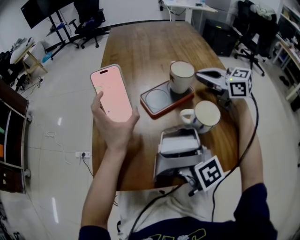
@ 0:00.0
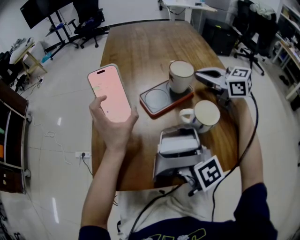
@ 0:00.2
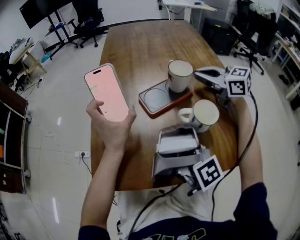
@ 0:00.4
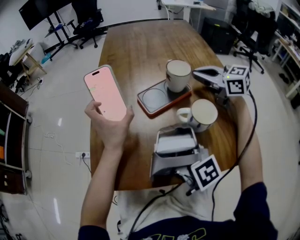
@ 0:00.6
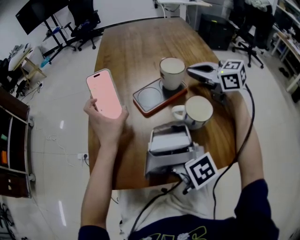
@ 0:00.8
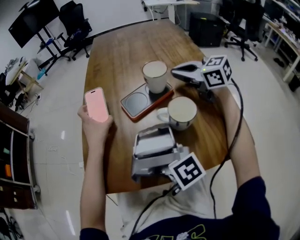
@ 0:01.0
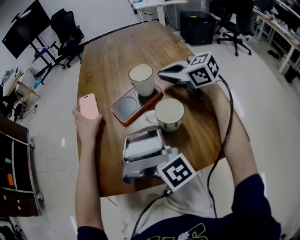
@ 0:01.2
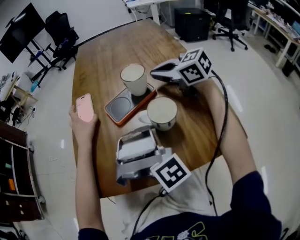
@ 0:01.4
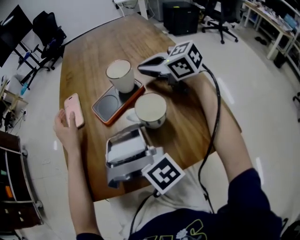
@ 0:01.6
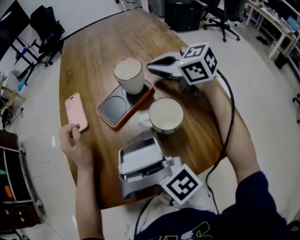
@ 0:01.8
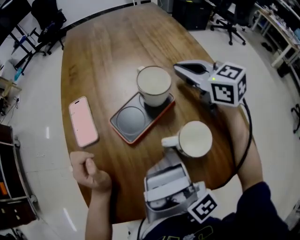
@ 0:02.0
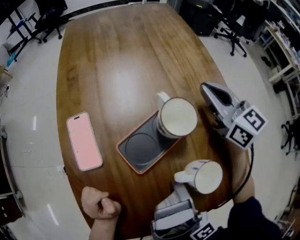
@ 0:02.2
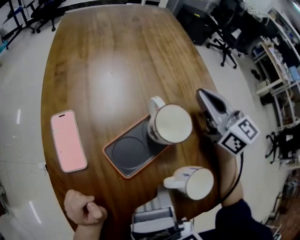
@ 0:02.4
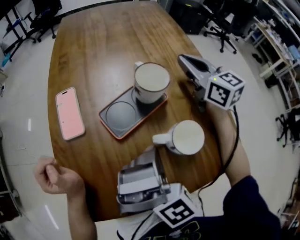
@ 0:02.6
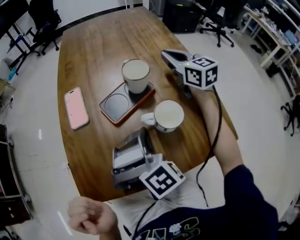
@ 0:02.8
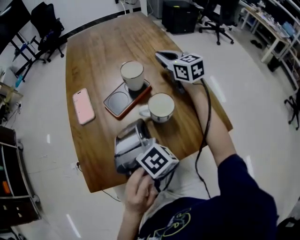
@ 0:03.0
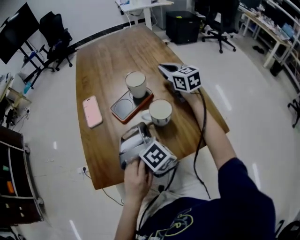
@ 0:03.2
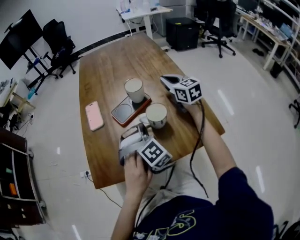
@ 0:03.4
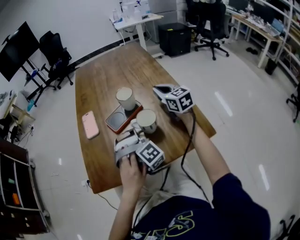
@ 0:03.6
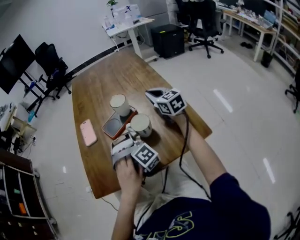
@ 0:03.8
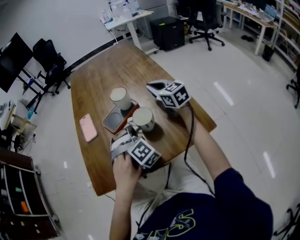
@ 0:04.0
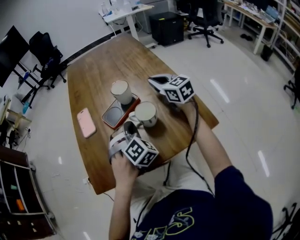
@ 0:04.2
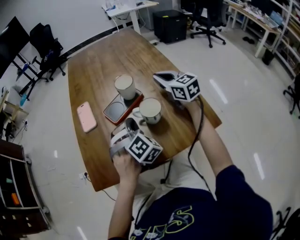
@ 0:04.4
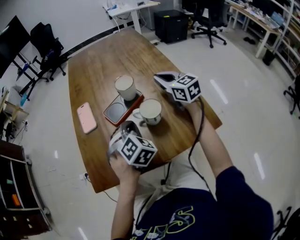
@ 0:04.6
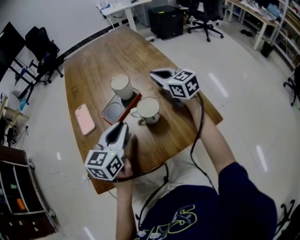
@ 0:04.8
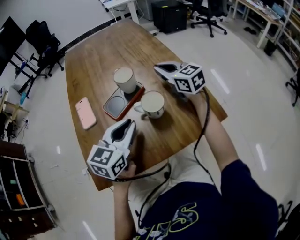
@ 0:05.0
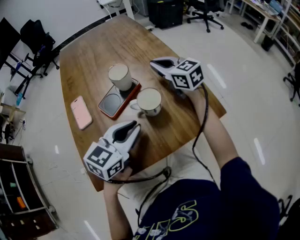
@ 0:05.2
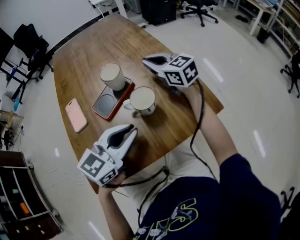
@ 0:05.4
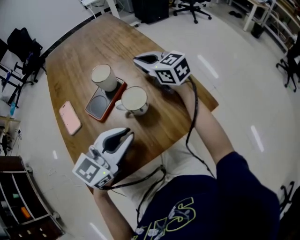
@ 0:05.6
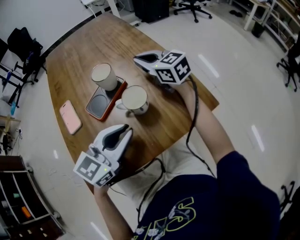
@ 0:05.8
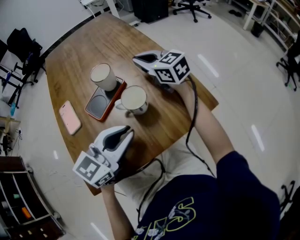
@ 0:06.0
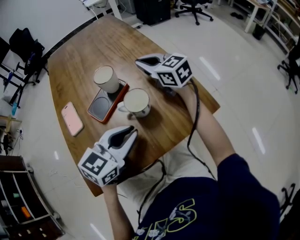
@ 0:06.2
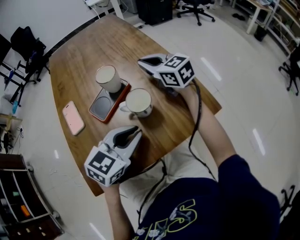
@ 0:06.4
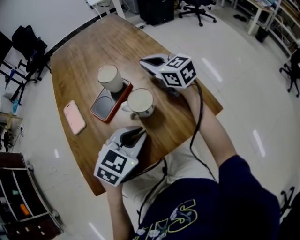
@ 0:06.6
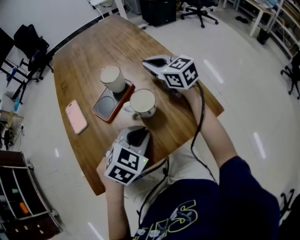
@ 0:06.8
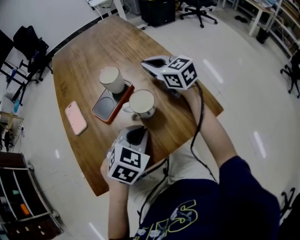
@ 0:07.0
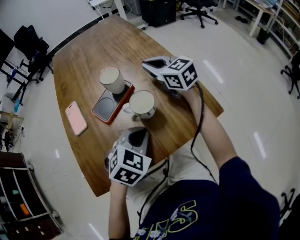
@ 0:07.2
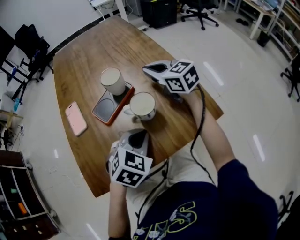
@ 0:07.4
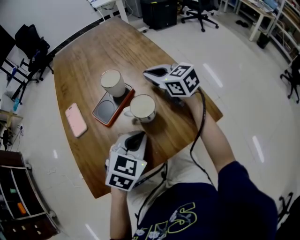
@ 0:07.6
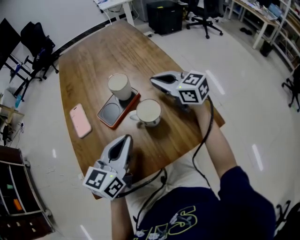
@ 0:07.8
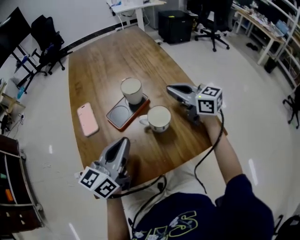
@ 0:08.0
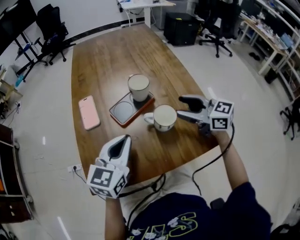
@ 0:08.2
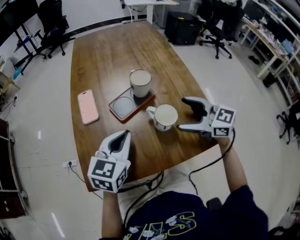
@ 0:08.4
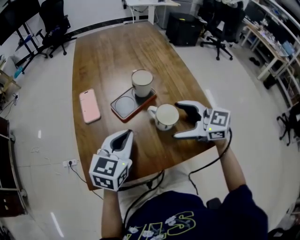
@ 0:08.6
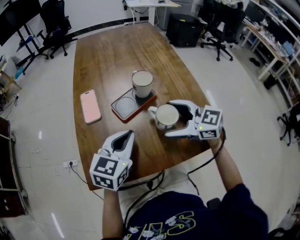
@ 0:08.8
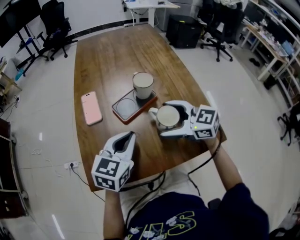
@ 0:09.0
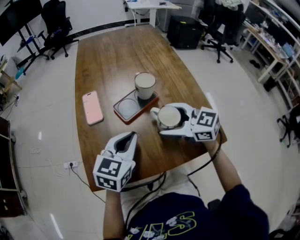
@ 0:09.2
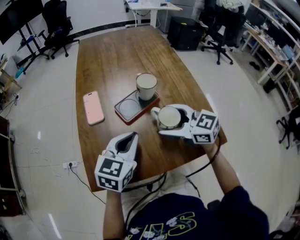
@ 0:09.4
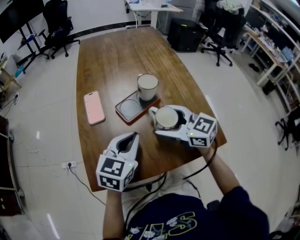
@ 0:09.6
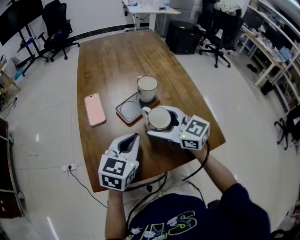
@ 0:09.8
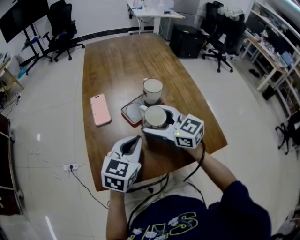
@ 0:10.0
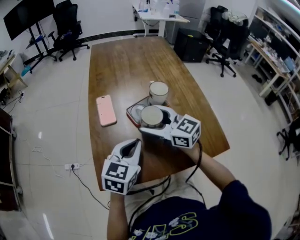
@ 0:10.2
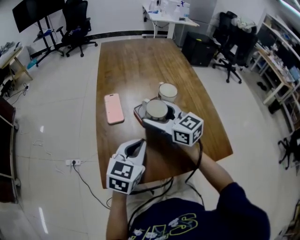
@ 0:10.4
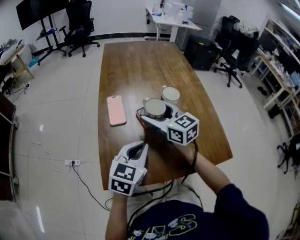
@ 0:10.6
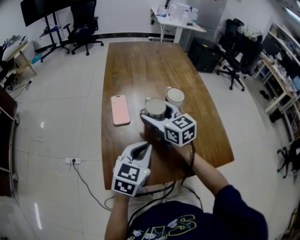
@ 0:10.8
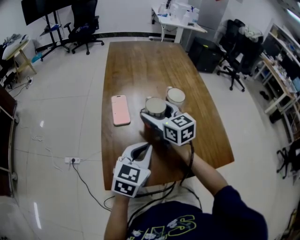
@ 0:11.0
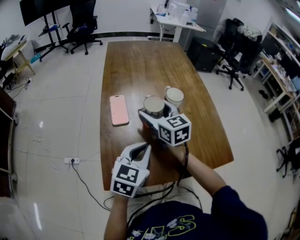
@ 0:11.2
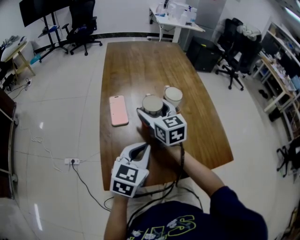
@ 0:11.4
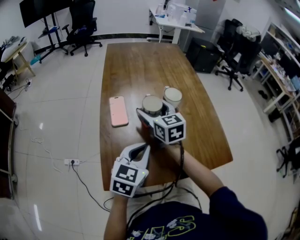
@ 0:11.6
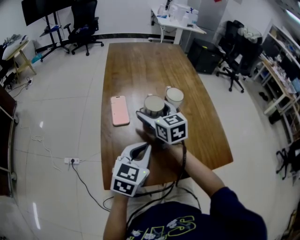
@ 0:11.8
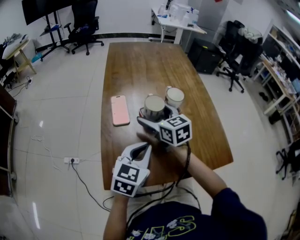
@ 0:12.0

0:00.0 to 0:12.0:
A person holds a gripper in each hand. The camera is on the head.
0:00.0 to 0:01.6: The grippers move only a little.
0:01.6 to 0:03.0: The right gripper travels to the right by about 10 cm, and swivels approximately 30 degrees; the left gripper swivels approximately 30 degrees.
0:03.0 to 0:04.4: The right gripper shifts some 10 cm backward.
0:04.4 to 0:06.0: The left gripper changes place by roughly 15 cm, and changes its angle by about 80 degrees.
0:06.0 to 0:07.6: The left gripper moves downward, some 5 cm, and changes its angle by some 30 degrees.
0:07.6 to 0:09.0: The left gripper moves to the left, some 10 cm, and changes its angle by about 30 degrees. The right gripper goes about 15 cm backward and to the left, turns by approximately 30 degrees, and opens its fingers.
0:09.0 to 0:10.4: The right gripper is displaced to the left and forward by approximately 15 cm.
0:10.4 to 0:12.0: The right gripper shifts by approximately 5 cm.

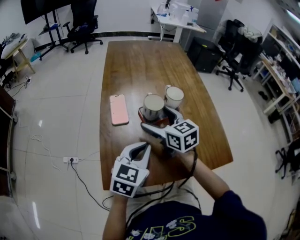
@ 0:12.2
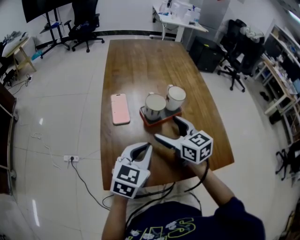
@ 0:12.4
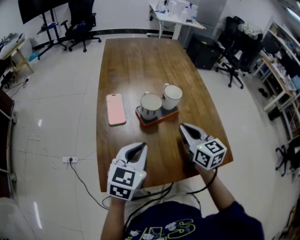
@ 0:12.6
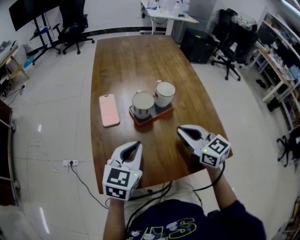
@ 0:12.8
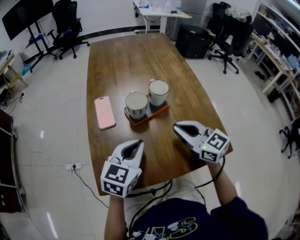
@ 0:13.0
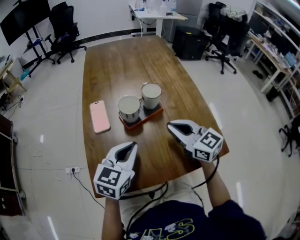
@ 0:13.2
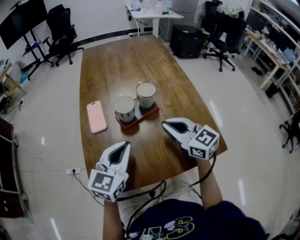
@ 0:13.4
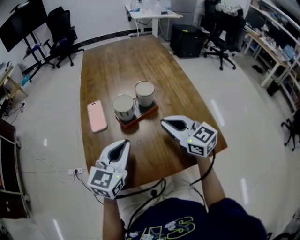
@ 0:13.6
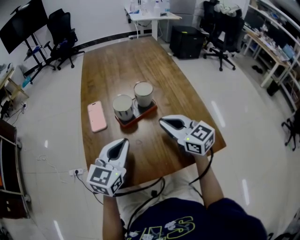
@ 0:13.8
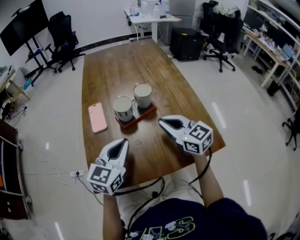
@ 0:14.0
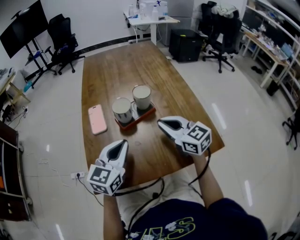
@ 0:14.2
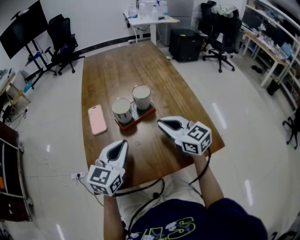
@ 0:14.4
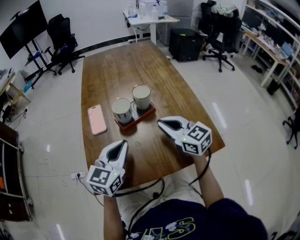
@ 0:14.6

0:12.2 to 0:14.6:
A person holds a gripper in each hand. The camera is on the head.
0:12.2 to 0:13.4: The right gripper goes roughly 15 cm to the right and backward, and closes.
0:13.4 to 0:14.6: The two grippers keep their place.

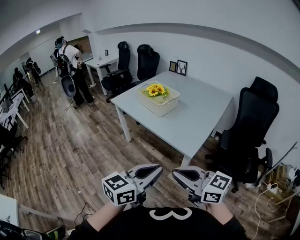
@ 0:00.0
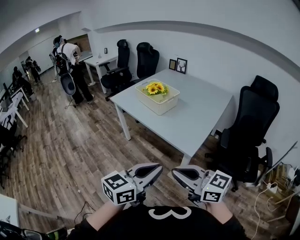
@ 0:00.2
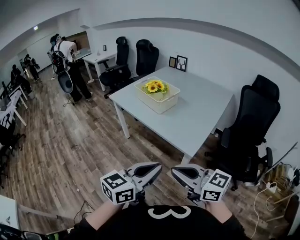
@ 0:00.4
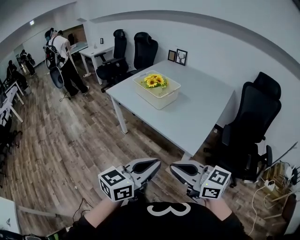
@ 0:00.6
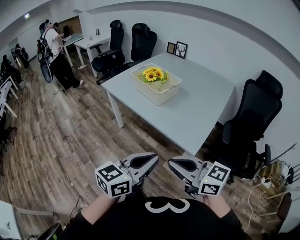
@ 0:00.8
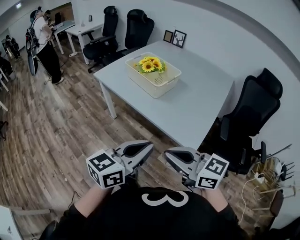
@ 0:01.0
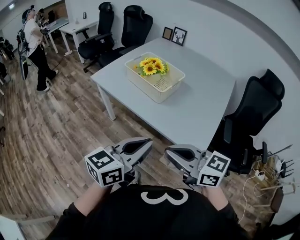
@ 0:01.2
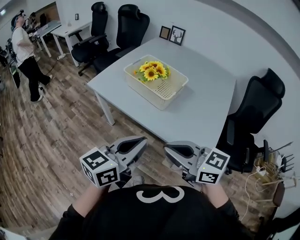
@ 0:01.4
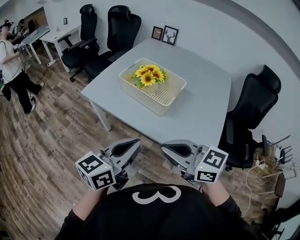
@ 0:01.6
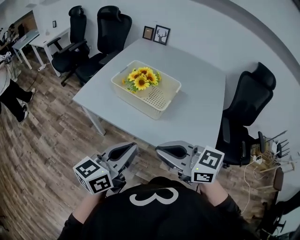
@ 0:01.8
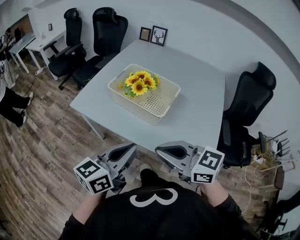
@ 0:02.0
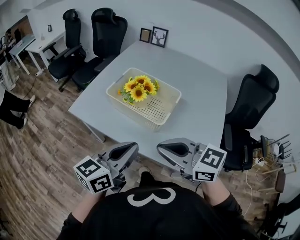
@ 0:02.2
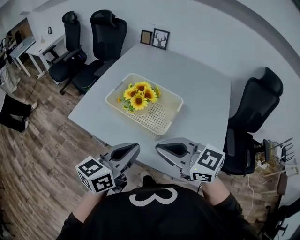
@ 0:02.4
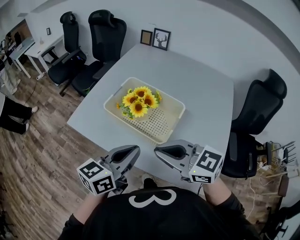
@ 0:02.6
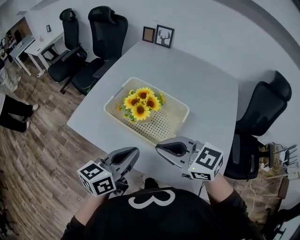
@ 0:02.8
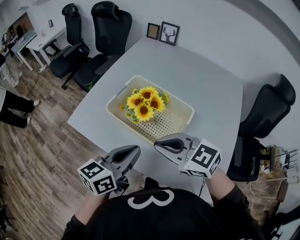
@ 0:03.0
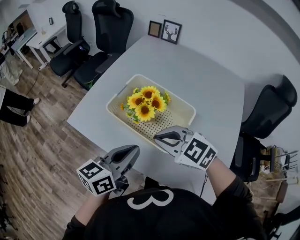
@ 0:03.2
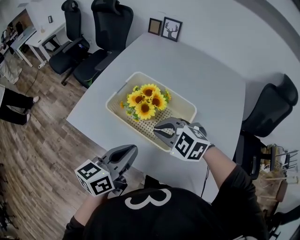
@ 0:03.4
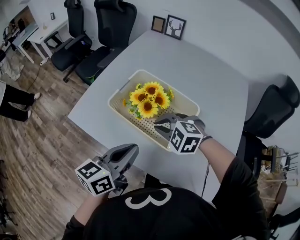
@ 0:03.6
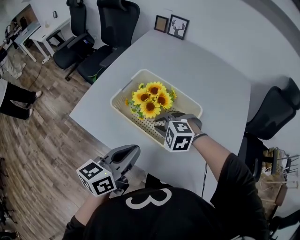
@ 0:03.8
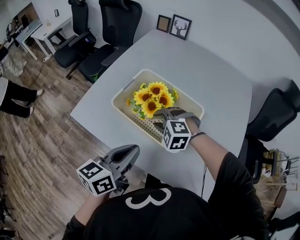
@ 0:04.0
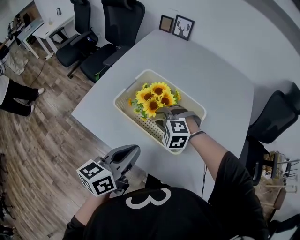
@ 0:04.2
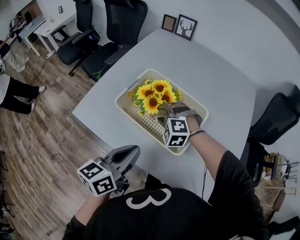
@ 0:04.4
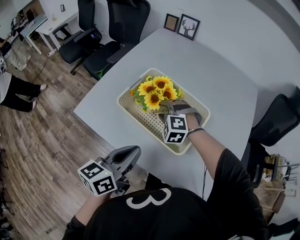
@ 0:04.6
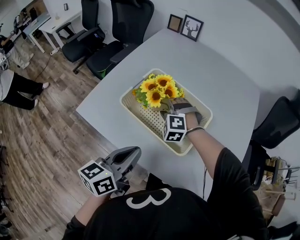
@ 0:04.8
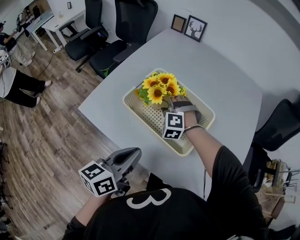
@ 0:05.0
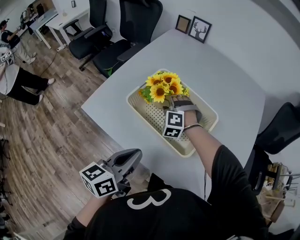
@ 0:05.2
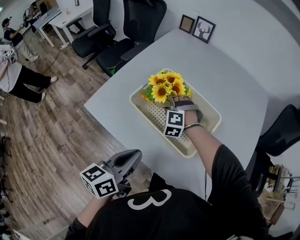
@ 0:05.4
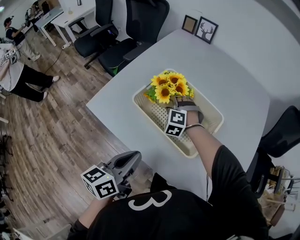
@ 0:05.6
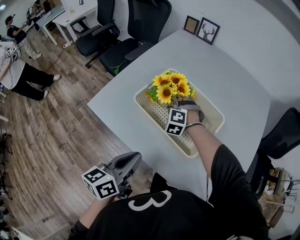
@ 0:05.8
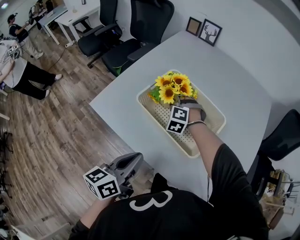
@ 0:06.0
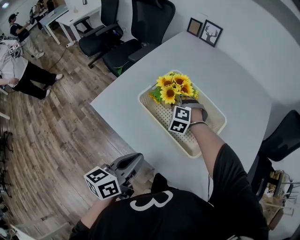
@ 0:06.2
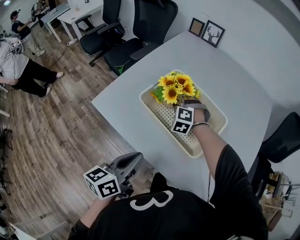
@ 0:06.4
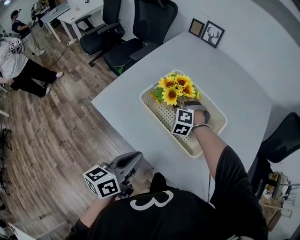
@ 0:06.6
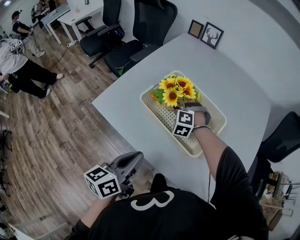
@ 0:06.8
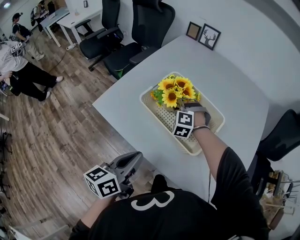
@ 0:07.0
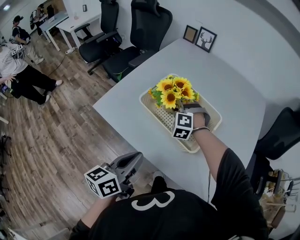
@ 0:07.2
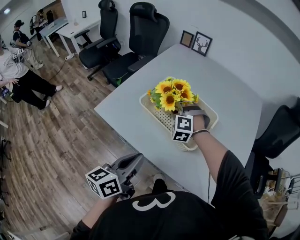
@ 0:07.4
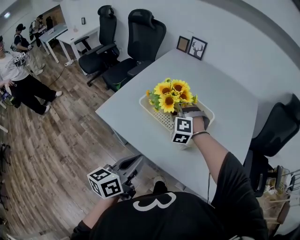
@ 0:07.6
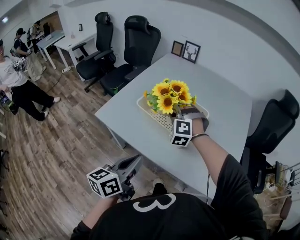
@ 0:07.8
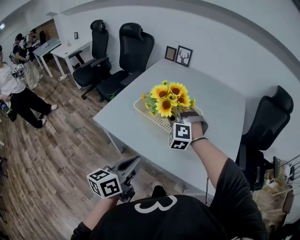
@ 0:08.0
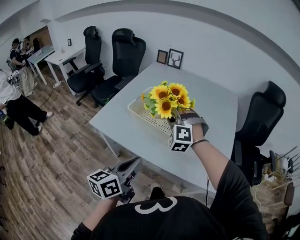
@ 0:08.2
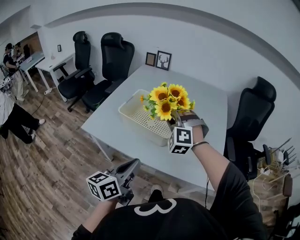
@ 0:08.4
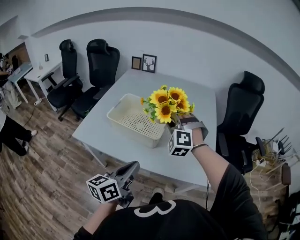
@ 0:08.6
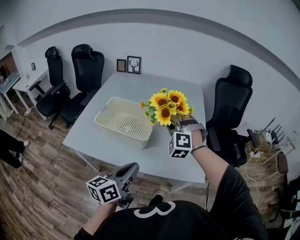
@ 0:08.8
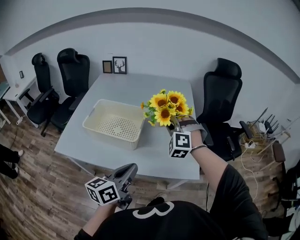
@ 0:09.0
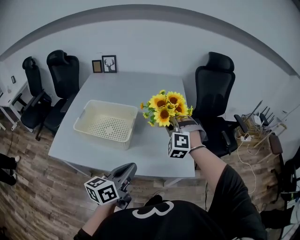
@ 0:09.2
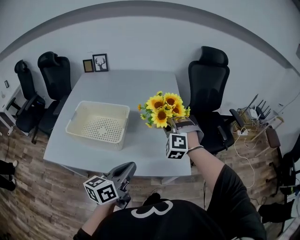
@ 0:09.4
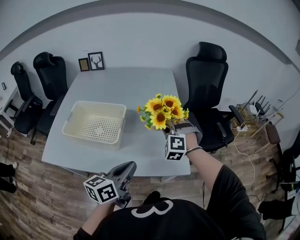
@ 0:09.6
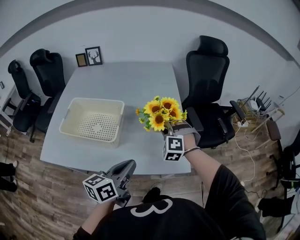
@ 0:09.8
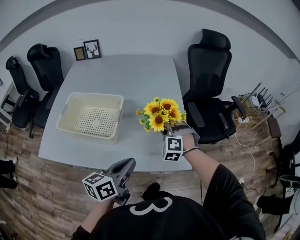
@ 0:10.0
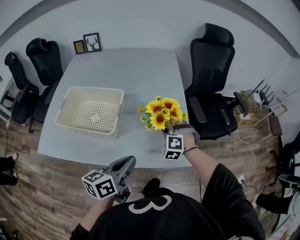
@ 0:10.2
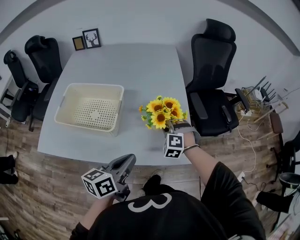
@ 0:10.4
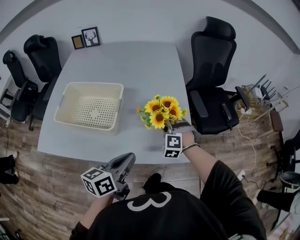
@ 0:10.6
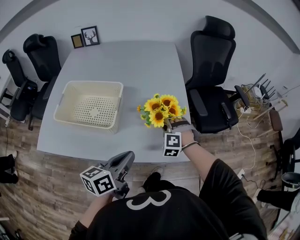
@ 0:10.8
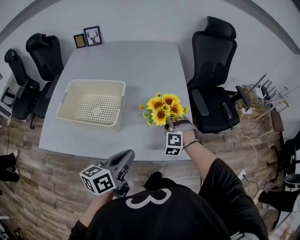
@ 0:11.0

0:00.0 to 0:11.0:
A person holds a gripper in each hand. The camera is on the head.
0:00.0 to 0:01.6: Both grippers travel together forward and to the left, approximately 40 cm.
0:01.6 to 0:03.2: The two grippers go some 25 cm forward. The right gripper swivels roughly 30 degrees.
0:03.2 to 0:04.8: The right gripper goes roughly 20 cm forward and downward, changes its angle by roughly 50 degrees, and opens its fingers.
0:04.8 to 0:06.2: The left gripper moves about 5 cm; the right gripper changes place by roughly 5 cm.
0:06.2 to 0:07.8: The left gripper shifts some 5 cm backward. The right gripper goes roughly 15 cm upward and backward.
0:07.8 to 0:09.4: The left gripper changes place by about 20 cm, and swivels about 30 degrees, while the right gripper goes upward and returns, roughly 10 cm each way, and swivels about 30 degrees.
0:09.4 to 0:11.0: The right gripper shifts some 15 cm downward.
